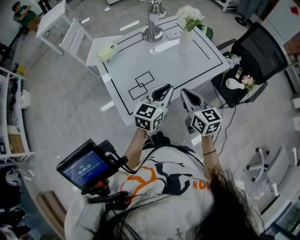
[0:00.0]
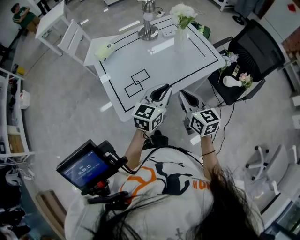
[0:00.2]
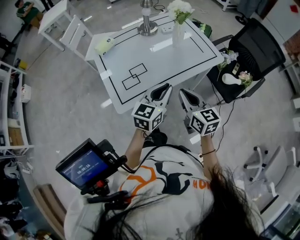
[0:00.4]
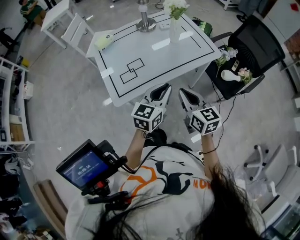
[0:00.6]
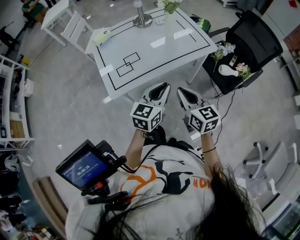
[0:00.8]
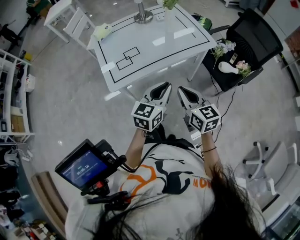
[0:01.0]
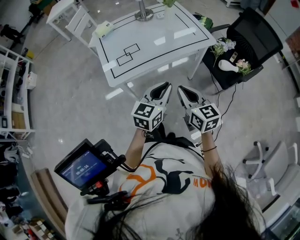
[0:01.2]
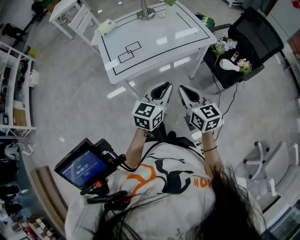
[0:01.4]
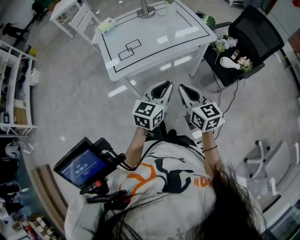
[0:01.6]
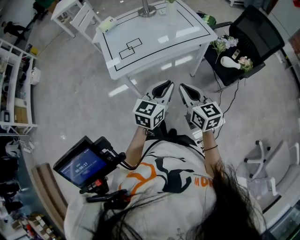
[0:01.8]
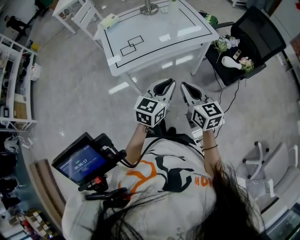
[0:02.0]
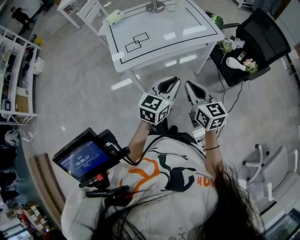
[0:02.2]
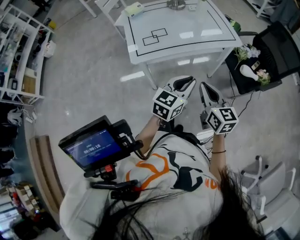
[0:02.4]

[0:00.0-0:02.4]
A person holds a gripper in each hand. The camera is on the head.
0:00.0 to 0:01.2: Both grippers travel together backward and to the right, some 20 cm.
0:01.2 to 0:02.4: The left gripper moves about 5 cm.

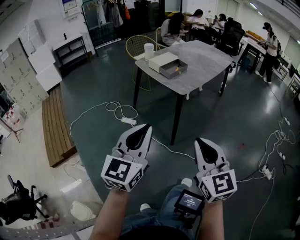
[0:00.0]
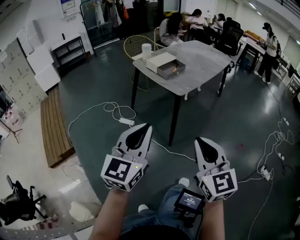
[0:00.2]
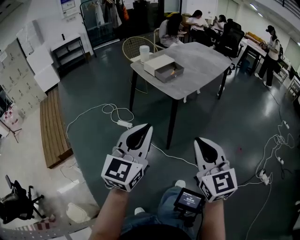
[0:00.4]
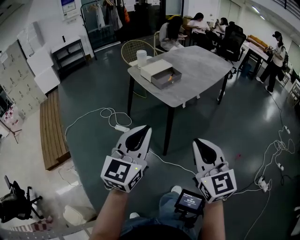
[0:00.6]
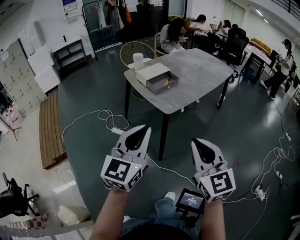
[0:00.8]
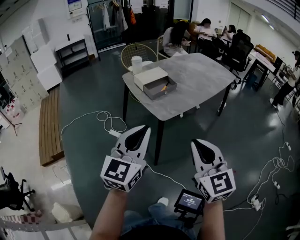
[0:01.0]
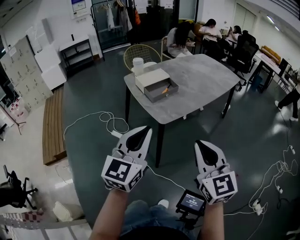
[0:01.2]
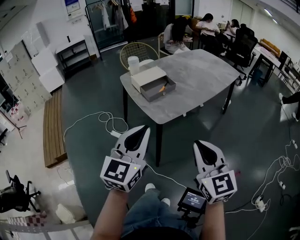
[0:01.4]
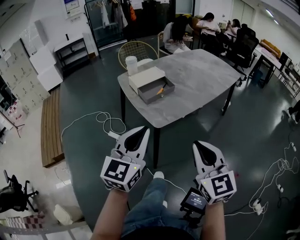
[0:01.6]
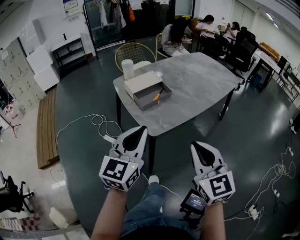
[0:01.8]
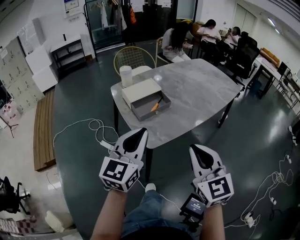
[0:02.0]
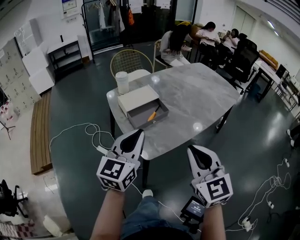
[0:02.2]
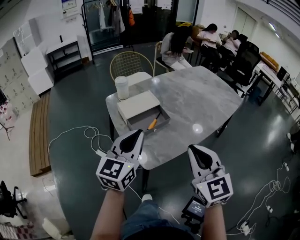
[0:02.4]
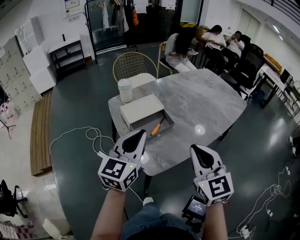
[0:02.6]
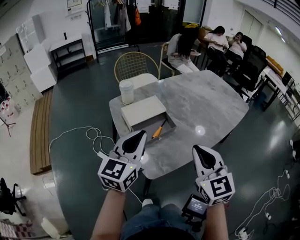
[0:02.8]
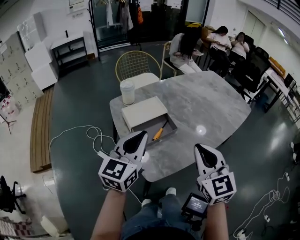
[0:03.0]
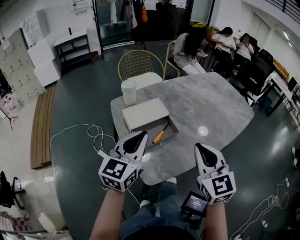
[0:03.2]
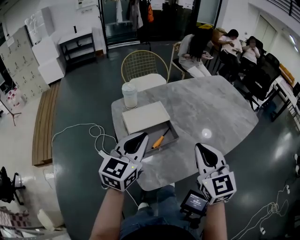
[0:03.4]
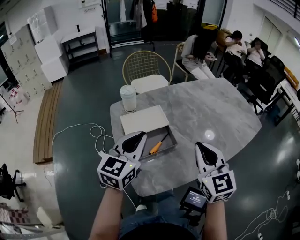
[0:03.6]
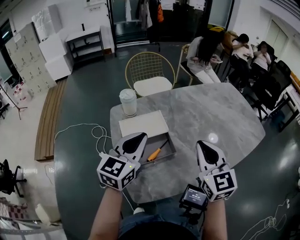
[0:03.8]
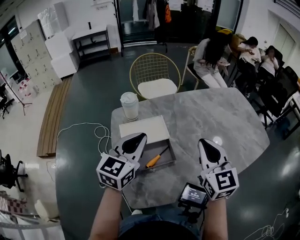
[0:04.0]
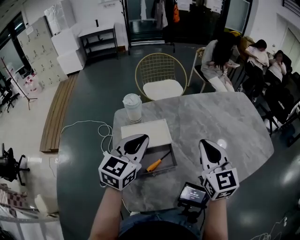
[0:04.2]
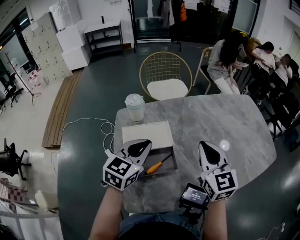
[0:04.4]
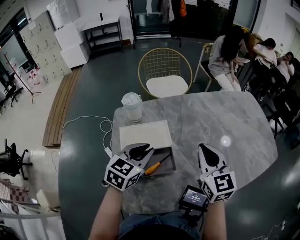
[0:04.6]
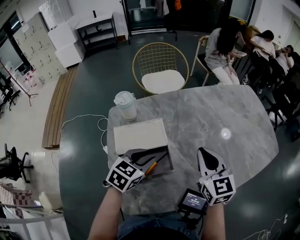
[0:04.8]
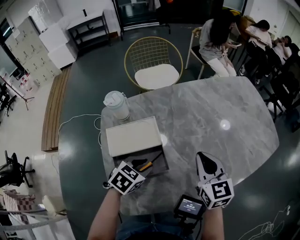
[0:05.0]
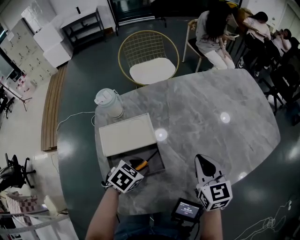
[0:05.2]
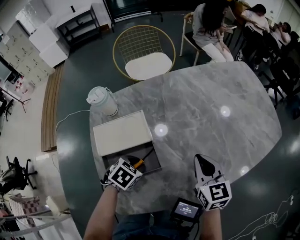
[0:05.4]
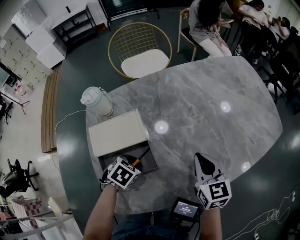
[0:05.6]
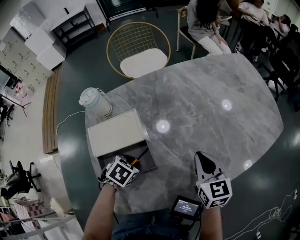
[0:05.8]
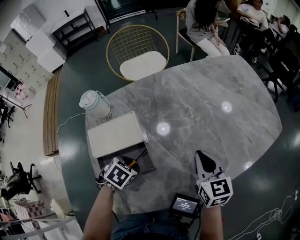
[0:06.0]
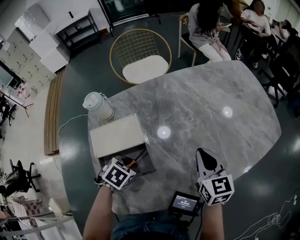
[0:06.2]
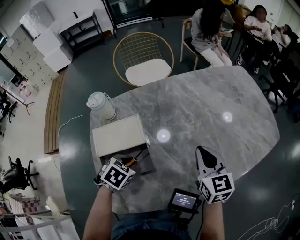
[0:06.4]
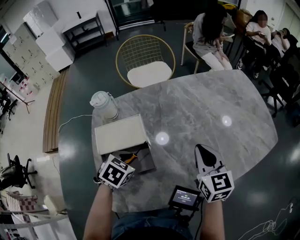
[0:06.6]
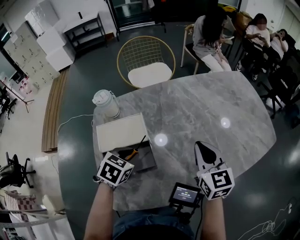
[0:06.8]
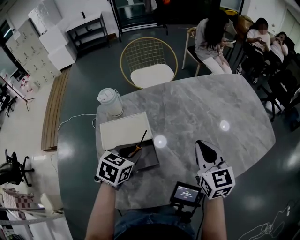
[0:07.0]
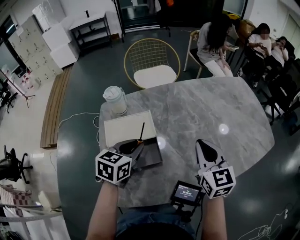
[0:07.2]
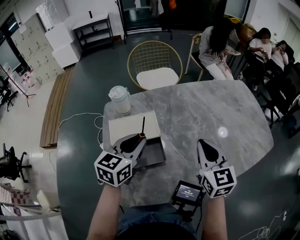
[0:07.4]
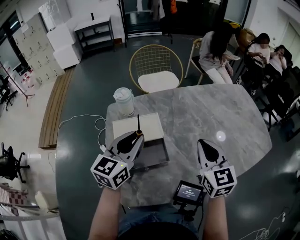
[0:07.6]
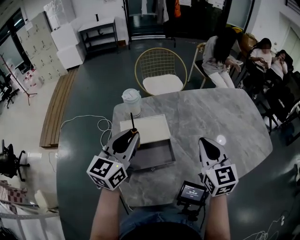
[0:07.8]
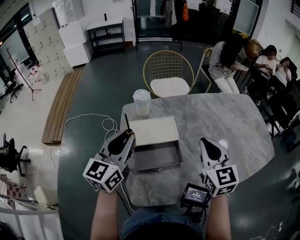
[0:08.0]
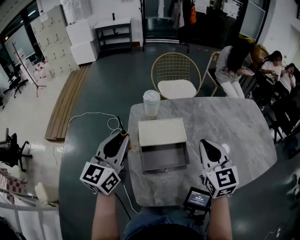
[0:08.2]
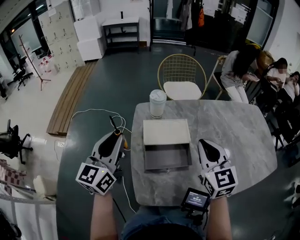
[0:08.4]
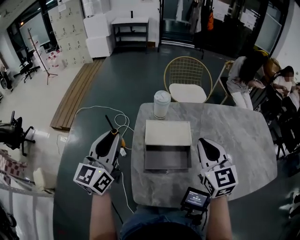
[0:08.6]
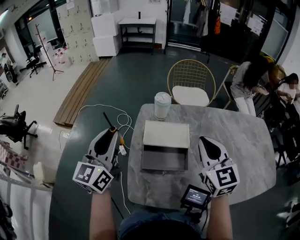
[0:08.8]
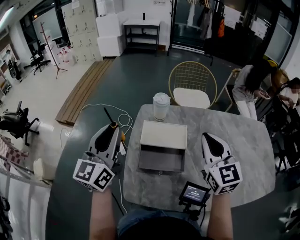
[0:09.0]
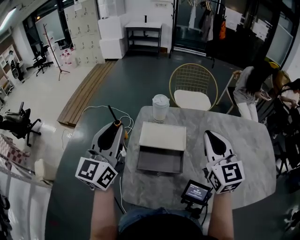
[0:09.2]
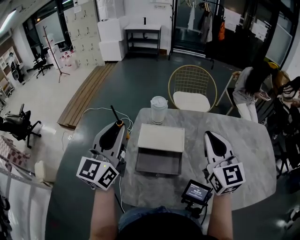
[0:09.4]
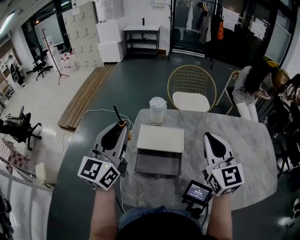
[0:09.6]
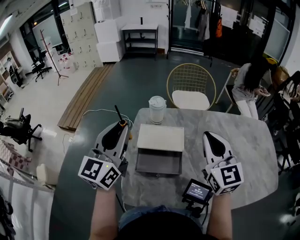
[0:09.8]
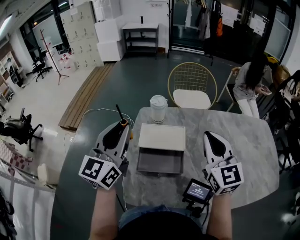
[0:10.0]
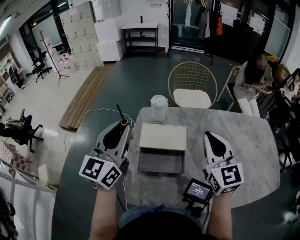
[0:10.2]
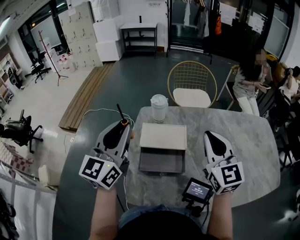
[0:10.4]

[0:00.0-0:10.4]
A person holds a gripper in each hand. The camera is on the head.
0:00.0 to 0:01.4: Both grippers move forward and to the right, some 30 cm.
0:01.4 to 0:03.0: The grippers both shift forward by some 30 cm.
0:03.0 to 0:04.4: The right gripper travels forward by about 25 cm; the left gripper moves forward and downward, some 20 cm, and changes its angle by about 20 degrees.
0:04.4 to 0:06.0: The left gripper is displaced downward by approximately 20 cm, and points its fingers approximately 50 degrees further downward. Meanwhile the right gripper travels downward and to the right by roughly 20 cm, and turns by some 20 degrees.
0:06.0 to 0:07.4: The right gripper is displaced upward and to the left by roughly 10 cm, while the left gripper moves upward, approximately 20 cm, and tilts its fingers about 50 degrees upward.
0:07.4 to 0:09.0: The left gripper ends up about 25 cm from where it was, and turns by approximately 40 degrees, while the right gripper moves about 15 cm, and turns by roughly 20 degrees.
0:09.0 to 0:10.4: The left gripper ends up roughly 5 cm from where it was.

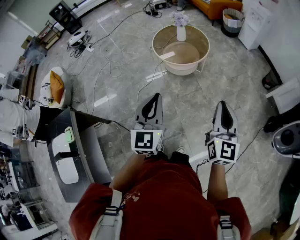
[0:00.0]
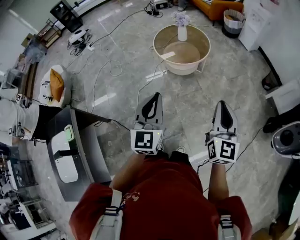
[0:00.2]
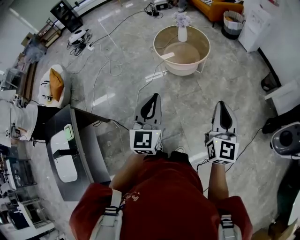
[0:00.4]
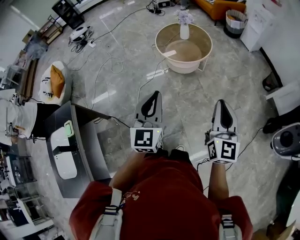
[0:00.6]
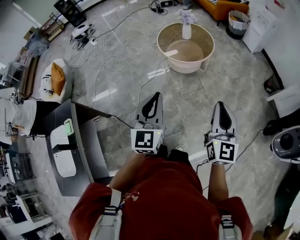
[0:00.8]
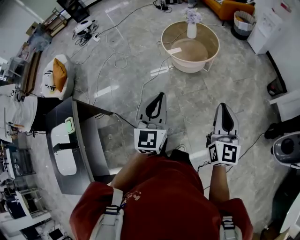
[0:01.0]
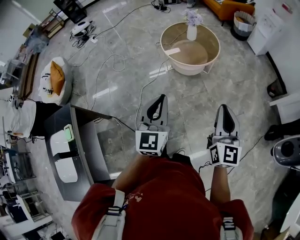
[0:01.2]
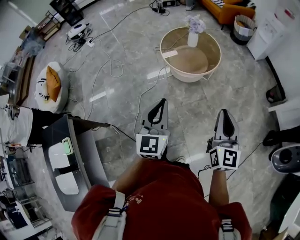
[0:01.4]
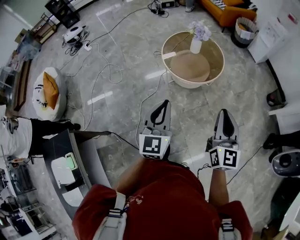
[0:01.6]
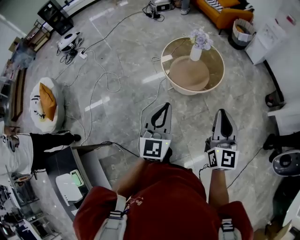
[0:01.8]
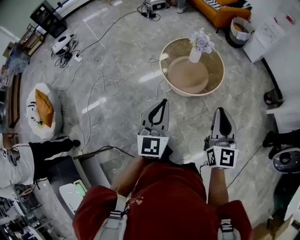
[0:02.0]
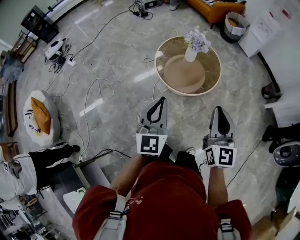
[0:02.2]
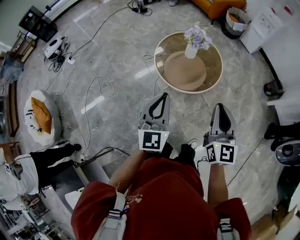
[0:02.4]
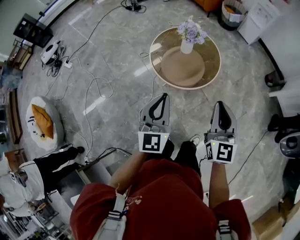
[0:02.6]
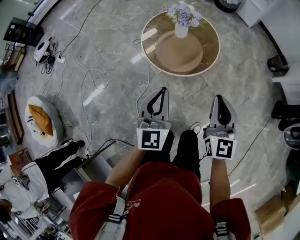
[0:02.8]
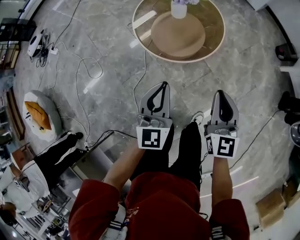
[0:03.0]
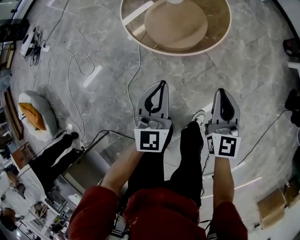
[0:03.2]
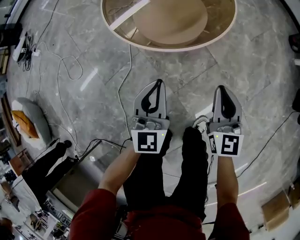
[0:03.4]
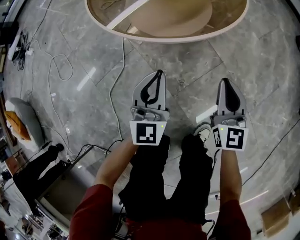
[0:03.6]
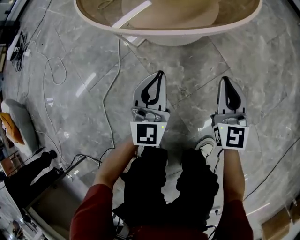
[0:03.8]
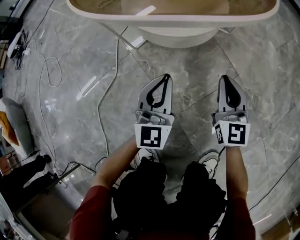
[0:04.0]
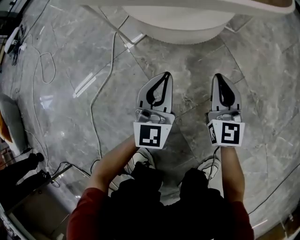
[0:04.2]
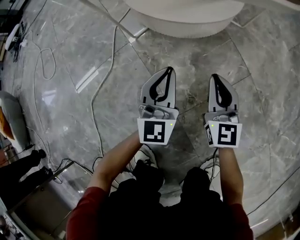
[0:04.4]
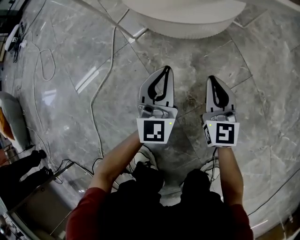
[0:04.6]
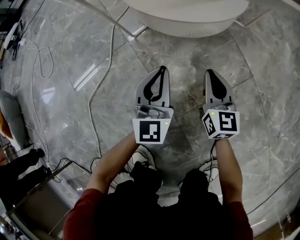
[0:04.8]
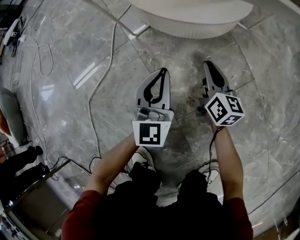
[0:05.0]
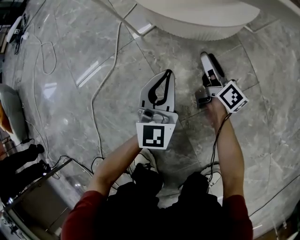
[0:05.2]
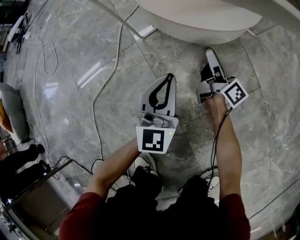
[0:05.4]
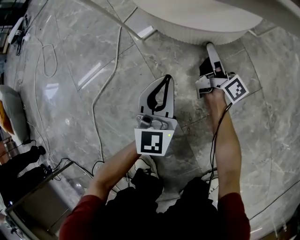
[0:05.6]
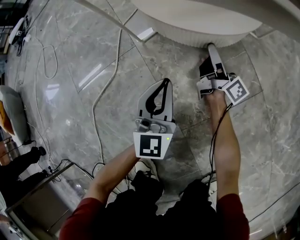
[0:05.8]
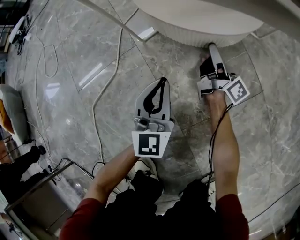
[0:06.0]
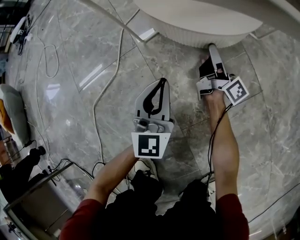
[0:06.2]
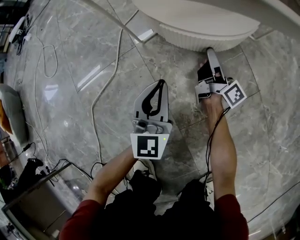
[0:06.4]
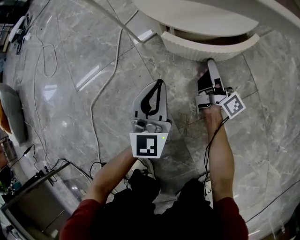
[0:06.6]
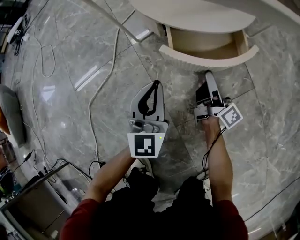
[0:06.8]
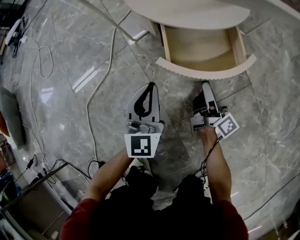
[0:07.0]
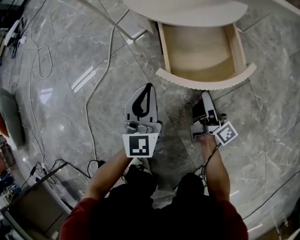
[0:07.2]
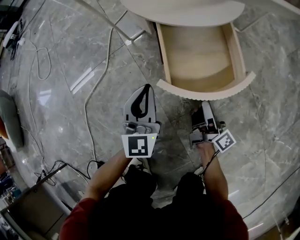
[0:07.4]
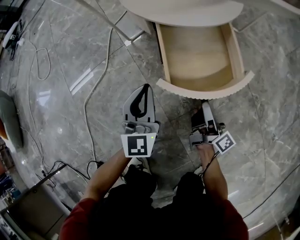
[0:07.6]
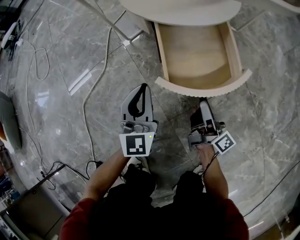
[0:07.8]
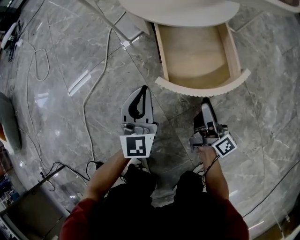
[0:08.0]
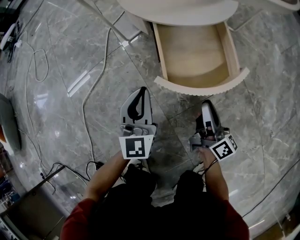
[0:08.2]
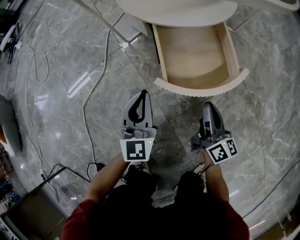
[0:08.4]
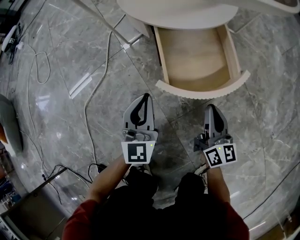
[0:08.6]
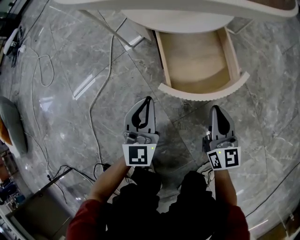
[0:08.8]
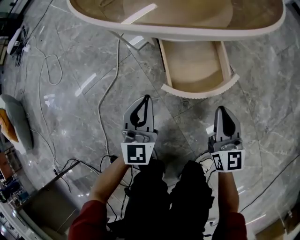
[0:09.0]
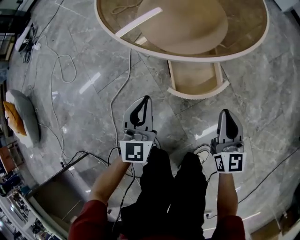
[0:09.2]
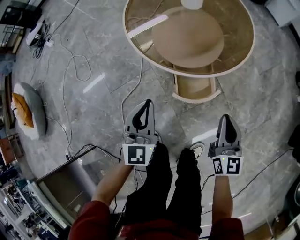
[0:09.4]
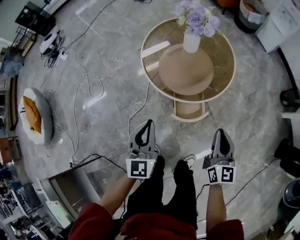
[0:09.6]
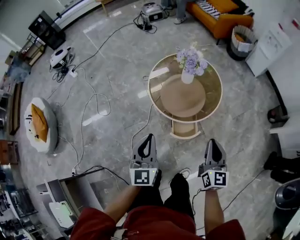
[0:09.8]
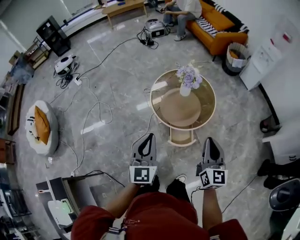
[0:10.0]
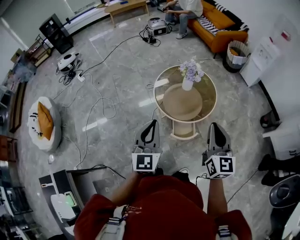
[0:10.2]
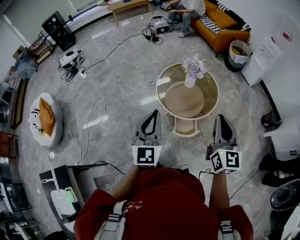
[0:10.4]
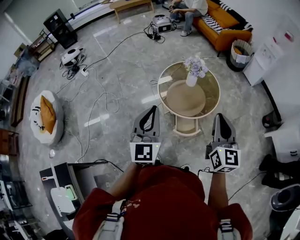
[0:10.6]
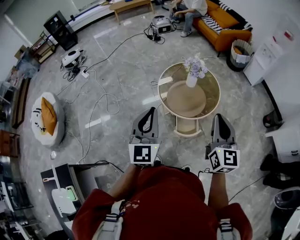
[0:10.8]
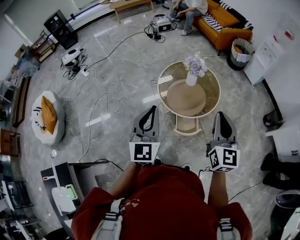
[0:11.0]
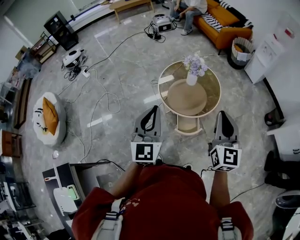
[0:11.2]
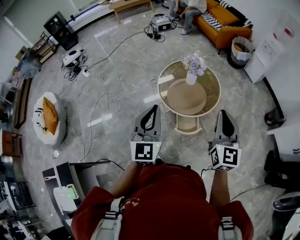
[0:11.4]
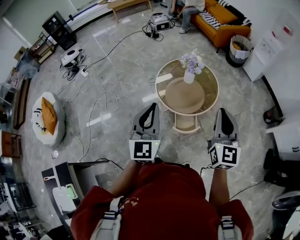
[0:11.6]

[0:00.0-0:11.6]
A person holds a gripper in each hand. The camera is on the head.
0:00.0 to 0:01.4: The two grippers go roughly 15 cm forward and to the left.
0:01.4 to 0:02.8: The right gripper goes some 30 cm forward and to the left. The left gripper shifts about 30 cm forward.
0:02.8 to 0:04.4: The two grippers go some 70 cm downward.
0:04.4 to 0:05.8: The right gripper goes some 20 cm forward and downward, twists roughly 70 degrees clockwise, seen from behind, and opens its fingers.
0:05.8 to 0:07.2: The right gripper heads backward, covering some 20 cm, while the left gripper ends up roughly 5 cm from where it was.
0:07.2 to 0:08.8: The right gripper shifts approximately 10 cm upward and backward, rolls counterclockwise, seen from behind, by approximately 60 degrees, and closes its fingers.
0:08.8 to 0:10.2: The grippers both shift upward by approximately 90 cm.
0:10.2 to 0:11.6: The left gripper travels upward by roughly 5 cm.
